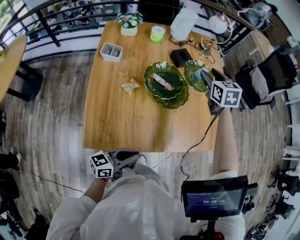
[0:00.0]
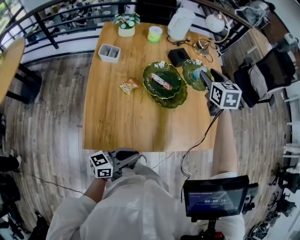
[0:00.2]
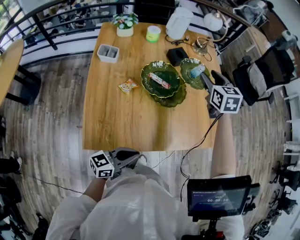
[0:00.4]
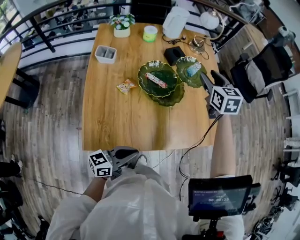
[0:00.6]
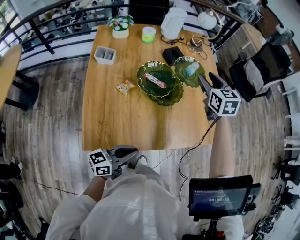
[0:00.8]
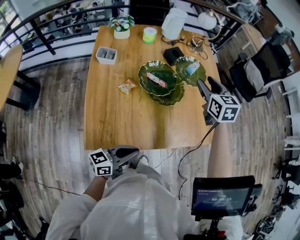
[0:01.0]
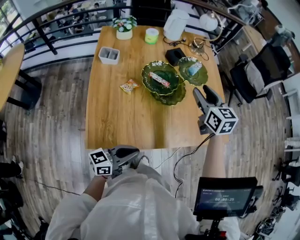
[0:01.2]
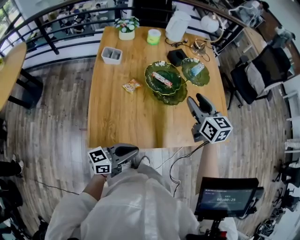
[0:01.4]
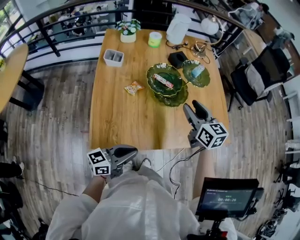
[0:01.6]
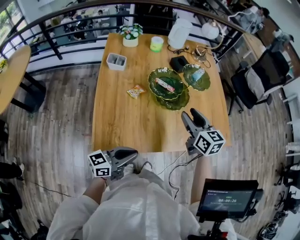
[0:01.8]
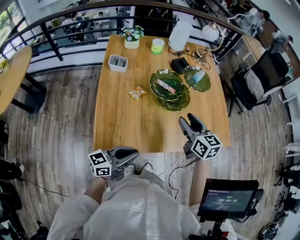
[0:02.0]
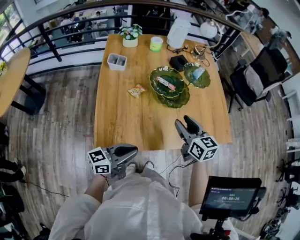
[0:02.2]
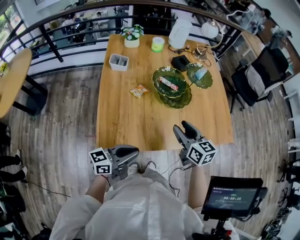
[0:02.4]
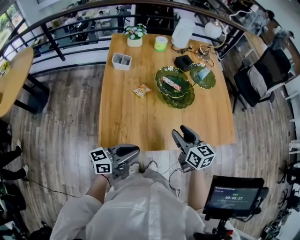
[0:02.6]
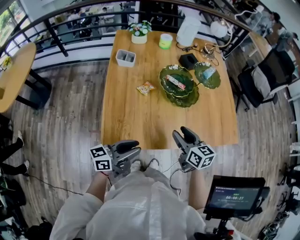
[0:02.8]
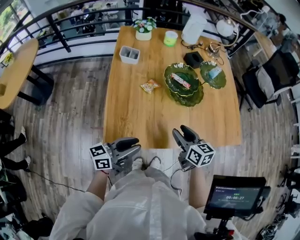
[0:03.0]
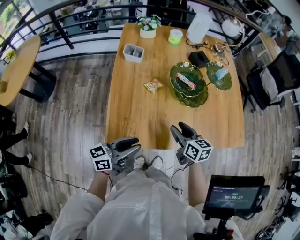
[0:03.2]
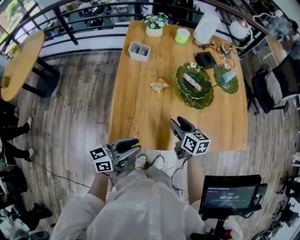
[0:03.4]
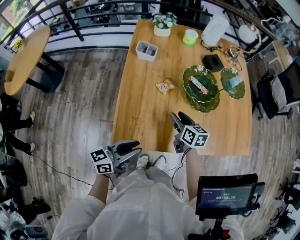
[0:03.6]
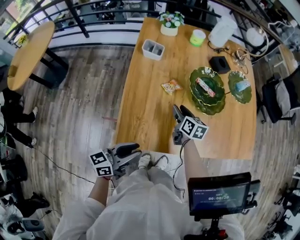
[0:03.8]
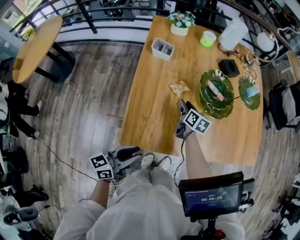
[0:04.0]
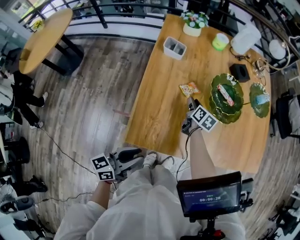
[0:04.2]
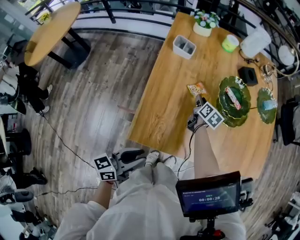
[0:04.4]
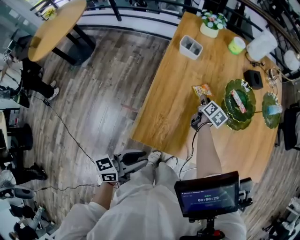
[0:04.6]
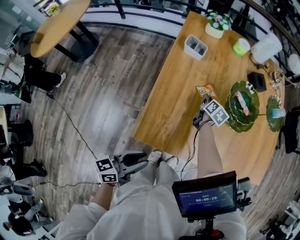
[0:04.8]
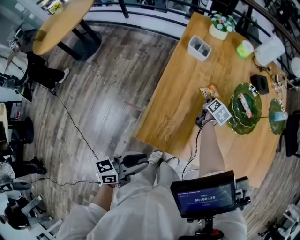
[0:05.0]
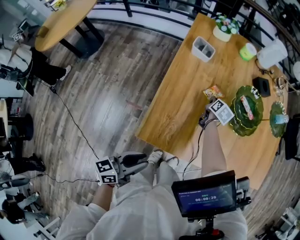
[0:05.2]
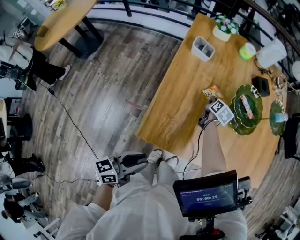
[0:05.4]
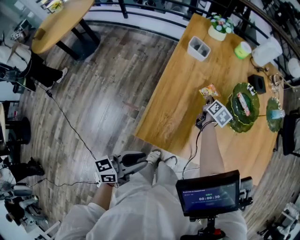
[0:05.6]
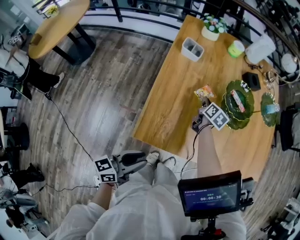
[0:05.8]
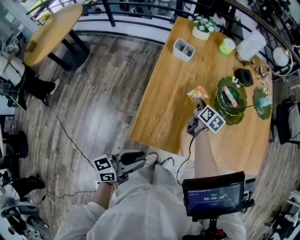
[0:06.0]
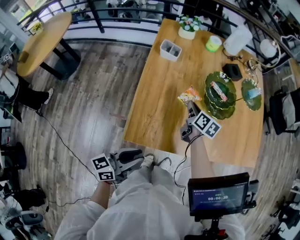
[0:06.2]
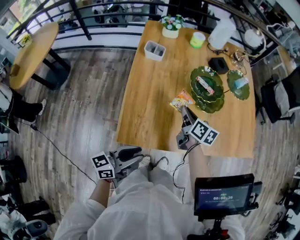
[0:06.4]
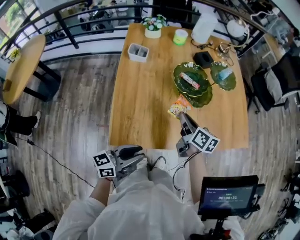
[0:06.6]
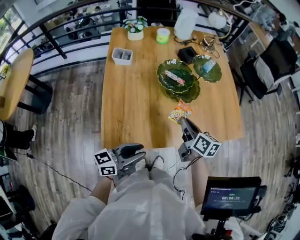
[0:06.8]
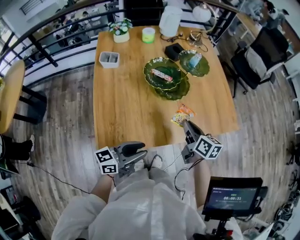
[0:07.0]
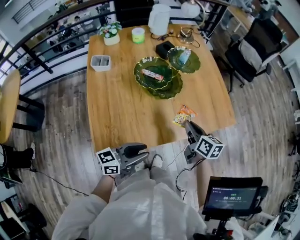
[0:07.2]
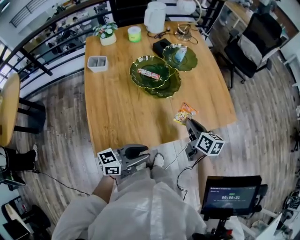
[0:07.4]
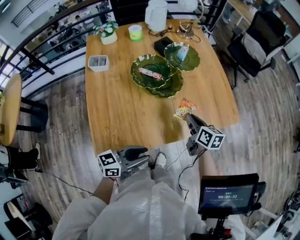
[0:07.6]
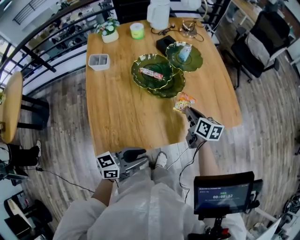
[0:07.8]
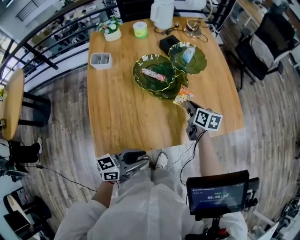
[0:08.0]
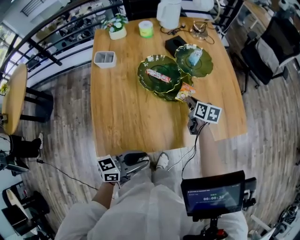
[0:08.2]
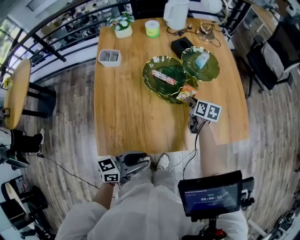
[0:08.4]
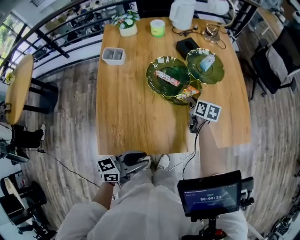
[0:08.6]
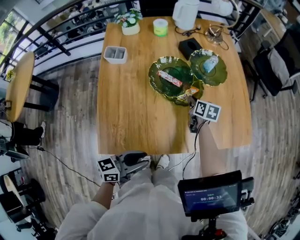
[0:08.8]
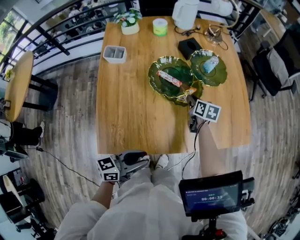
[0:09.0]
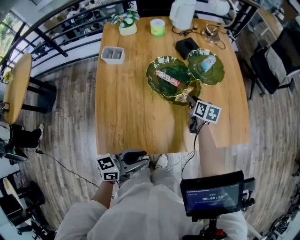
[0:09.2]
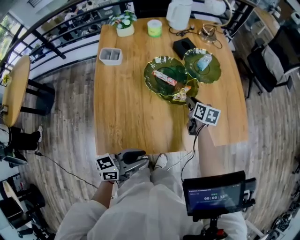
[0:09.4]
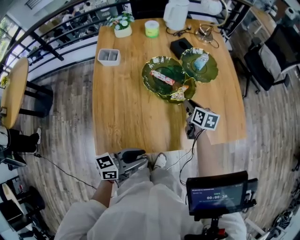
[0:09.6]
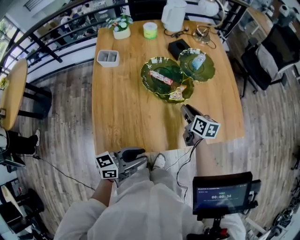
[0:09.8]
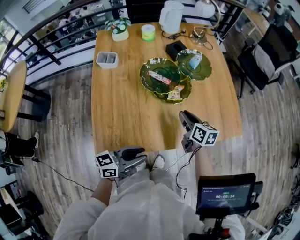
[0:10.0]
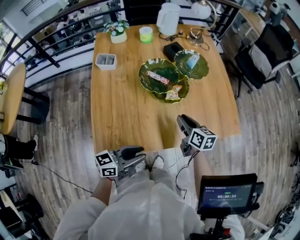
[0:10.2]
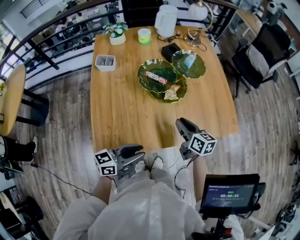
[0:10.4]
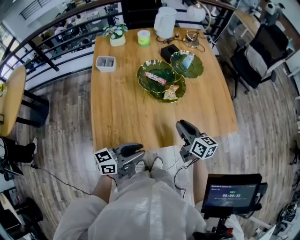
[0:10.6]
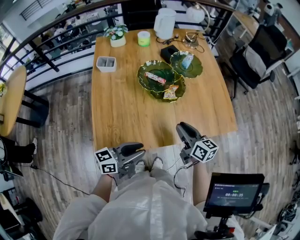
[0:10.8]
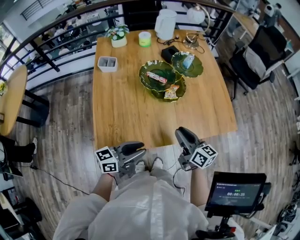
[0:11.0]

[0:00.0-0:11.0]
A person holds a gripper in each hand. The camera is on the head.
0:00.0 to 0:01.6: The left gripper changes place by some 5 cm. Meanwhile the right gripper heads backward, covering approximately 20 cm, and rotates approximately 20 degrees.
0:01.6 to 0:03.2: The right gripper is displaced downward, backward and to the left by about 20 cm. Meanwhile the left gripper is displaced to the left by some 10 cm, and opens.
0:03.2 to 0:04.8: The left gripper is displaced to the left, backward and downward by approximately 10 cm. The right gripper heads forward, downward and to the left, covering roughly 30 cm, and changes its angle by approximately 30 degrees.
0:04.8 to 0:06.2: The right gripper is displaced upward and backward by approximately 15 cm, and closes.
0:06.2 to 0:07.8: The right gripper is displaced to the right by about 30 cm. The left gripper heads to the right and forward, covering approximately 20 cm, and changes its angle by roughly 30 degrees.
0:07.8 to 0:09.4: The right gripper travels forward, to the left and downward by some 15 cm.
0:09.4 to 0:11.0: The right gripper heads backward and upward, covering roughly 25 cm, and turns by some 30 degrees.

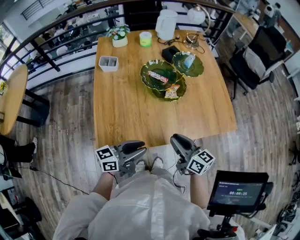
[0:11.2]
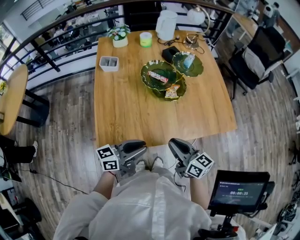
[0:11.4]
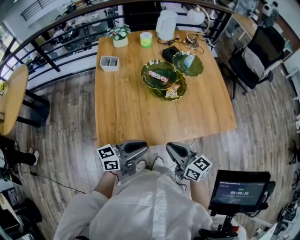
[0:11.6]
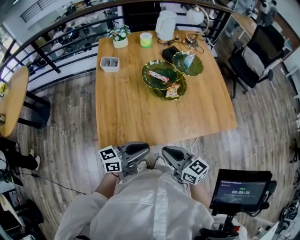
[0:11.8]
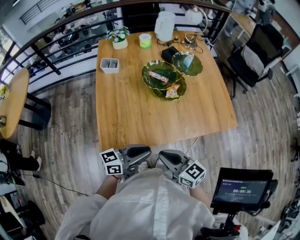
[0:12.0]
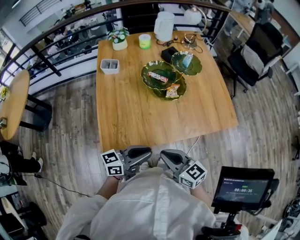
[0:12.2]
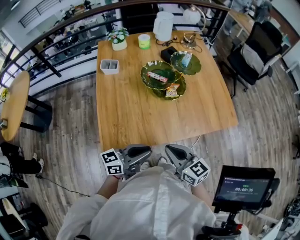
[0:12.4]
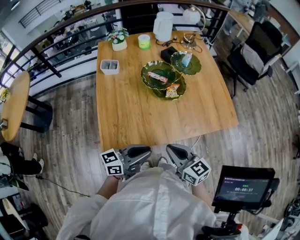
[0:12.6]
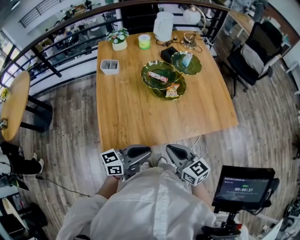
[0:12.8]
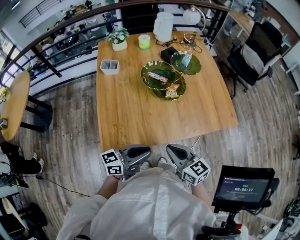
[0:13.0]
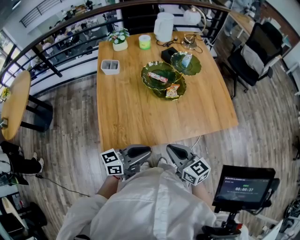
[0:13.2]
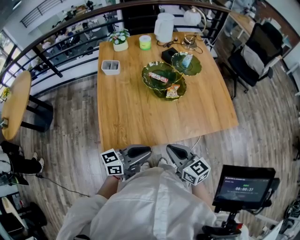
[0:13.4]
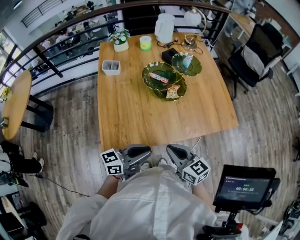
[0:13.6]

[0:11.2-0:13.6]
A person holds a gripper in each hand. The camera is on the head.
0:11.2 to 0:12.4: The right gripper travels backward by some 5 cm.
0:12.4 to 0:13.6: The two grippers keep their place.

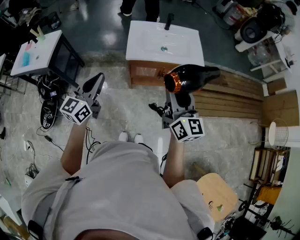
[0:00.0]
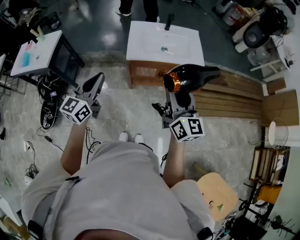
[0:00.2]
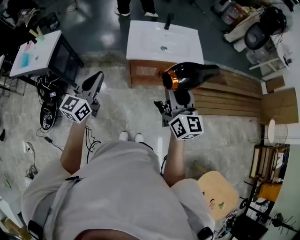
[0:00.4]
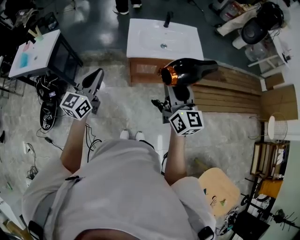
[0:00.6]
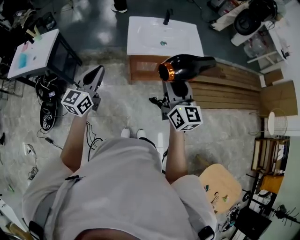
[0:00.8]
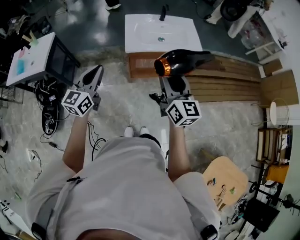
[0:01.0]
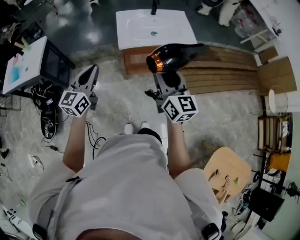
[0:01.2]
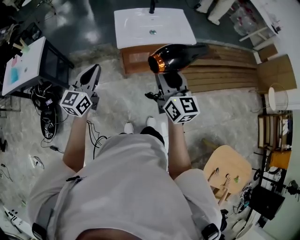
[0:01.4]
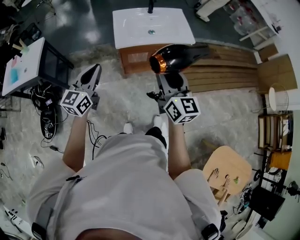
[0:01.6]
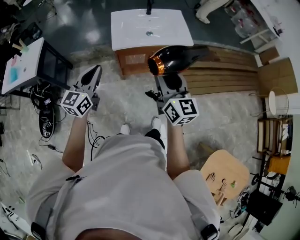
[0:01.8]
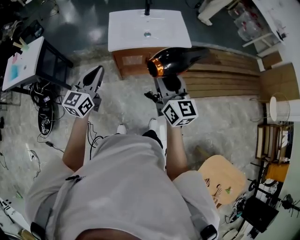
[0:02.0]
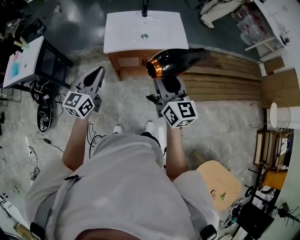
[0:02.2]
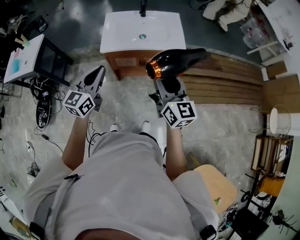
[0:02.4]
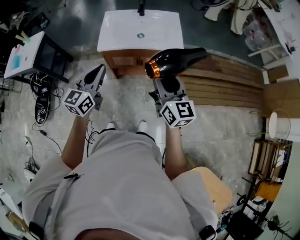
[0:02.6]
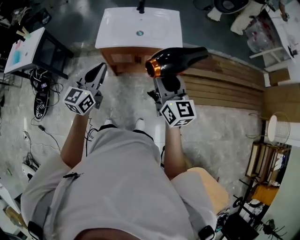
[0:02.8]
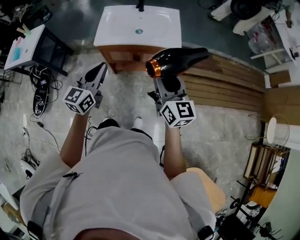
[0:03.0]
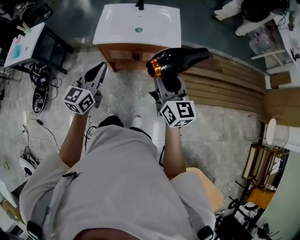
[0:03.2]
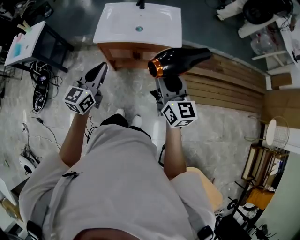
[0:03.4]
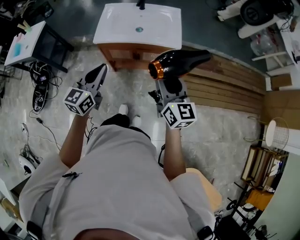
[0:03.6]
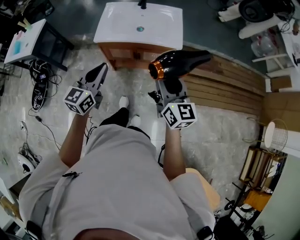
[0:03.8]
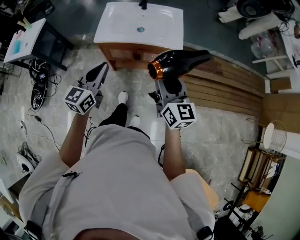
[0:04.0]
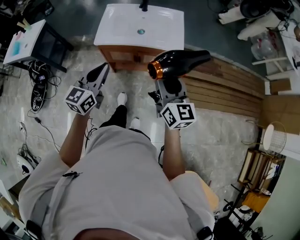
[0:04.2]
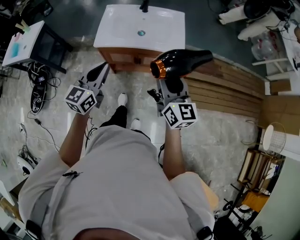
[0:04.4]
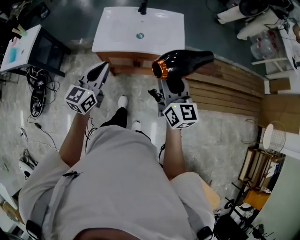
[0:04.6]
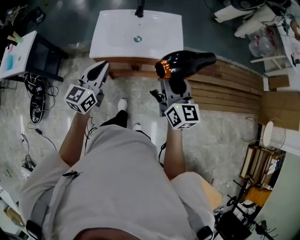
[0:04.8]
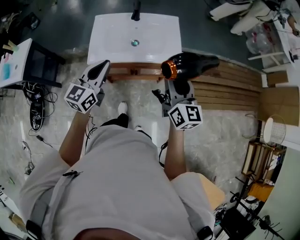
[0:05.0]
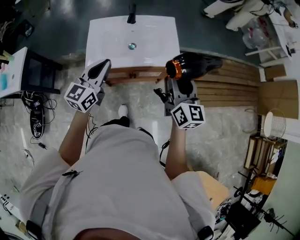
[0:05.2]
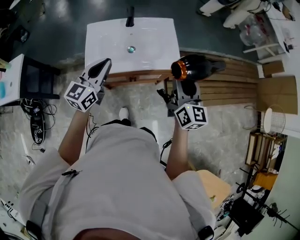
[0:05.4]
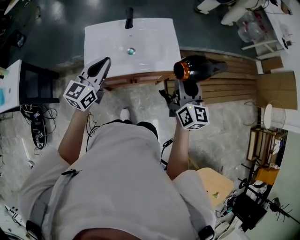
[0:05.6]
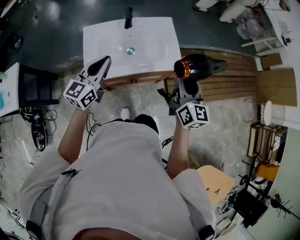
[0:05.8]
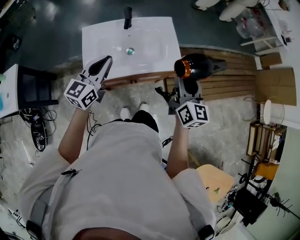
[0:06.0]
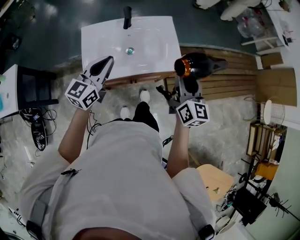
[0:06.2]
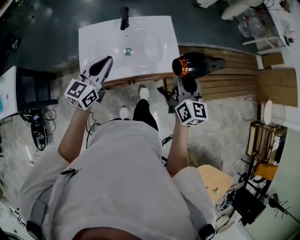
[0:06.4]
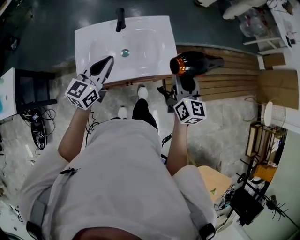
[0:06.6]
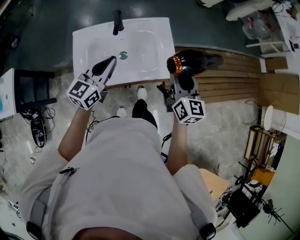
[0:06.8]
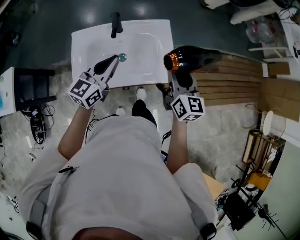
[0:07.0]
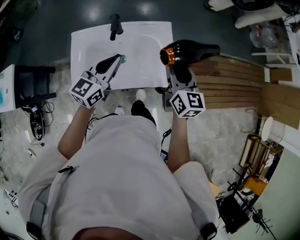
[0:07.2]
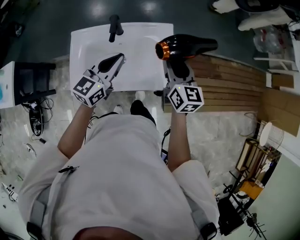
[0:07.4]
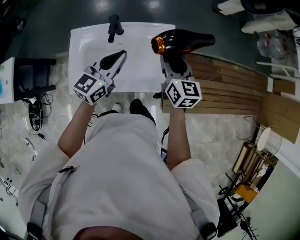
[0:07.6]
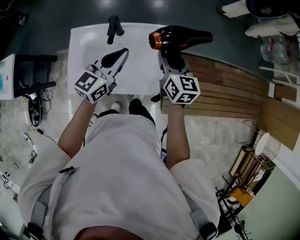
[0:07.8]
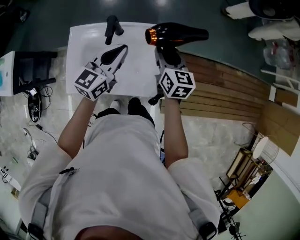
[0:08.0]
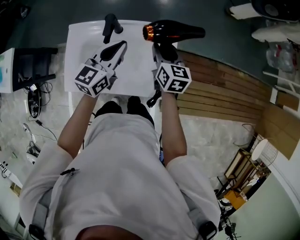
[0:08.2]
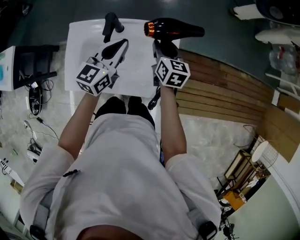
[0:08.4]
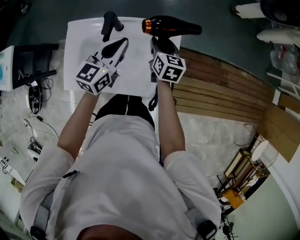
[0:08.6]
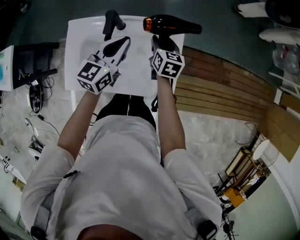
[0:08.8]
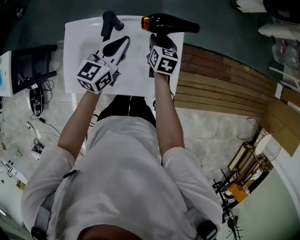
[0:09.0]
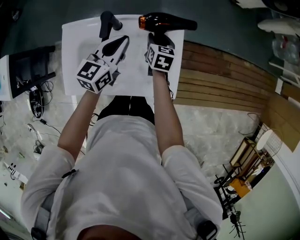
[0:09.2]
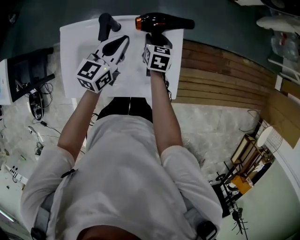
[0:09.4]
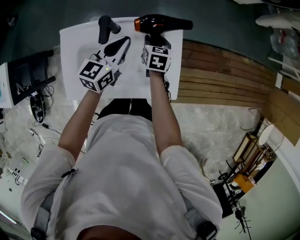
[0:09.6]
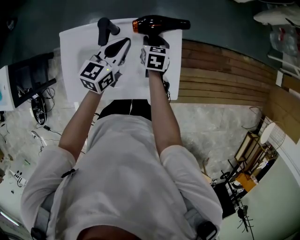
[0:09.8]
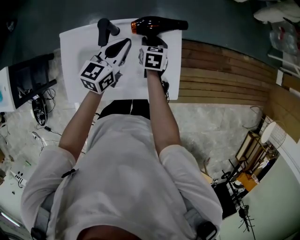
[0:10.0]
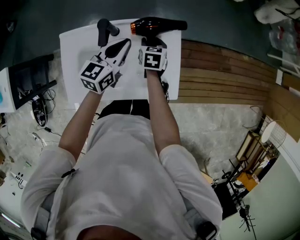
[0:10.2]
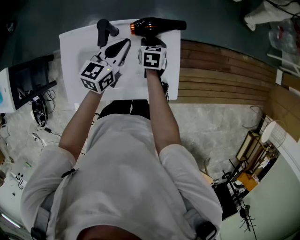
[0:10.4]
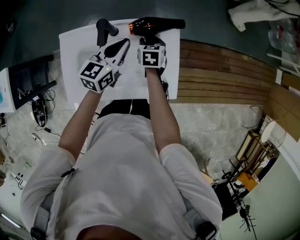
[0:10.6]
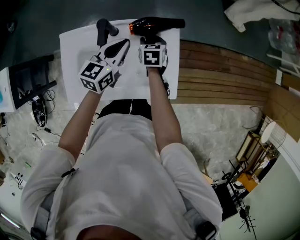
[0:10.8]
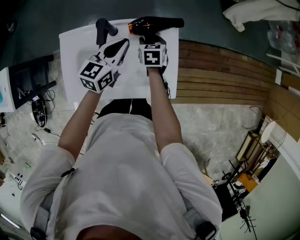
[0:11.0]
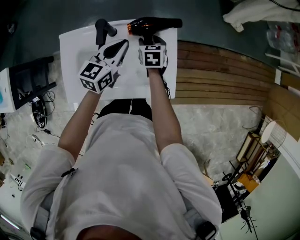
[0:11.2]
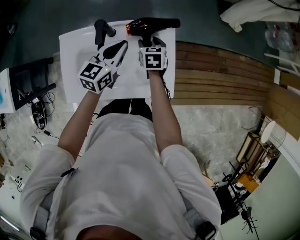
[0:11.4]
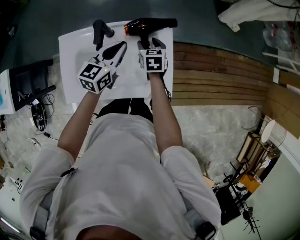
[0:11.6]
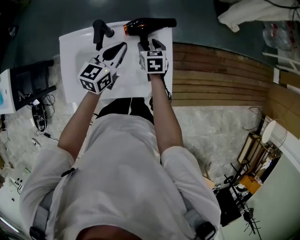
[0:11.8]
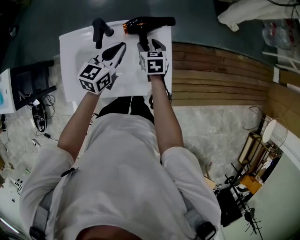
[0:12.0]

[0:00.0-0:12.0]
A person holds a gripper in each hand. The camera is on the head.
0:01.6 to 0:03.0: The two grippers go roughly 25 cm to the right.
0:03.0 to 0:04.4: The right gripper is displaced forward by roughly 5 cm.
0:04.4 to 0:06.0: The two grippers go about 20 cm forward. The right gripper swivels roughly 20 degrees.
0:06.0 to 0:07.6: The right gripper moves forward, some 25 cm, and turns by roughly 20 degrees; the left gripper shifts approximately 20 cm forward and to the right.
0:07.6 to 0:09.0: The left gripper moves forward and downward, roughly 10 cm. The right gripper goes approximately 20 cm downward and forward, and changes its angle by roughly 20 degrees.
0:09.0 to 0:10.4: The right gripper moves some 5 cm.
0:10.4 to 0:12.0: The right gripper shifts by some 5 cm.
